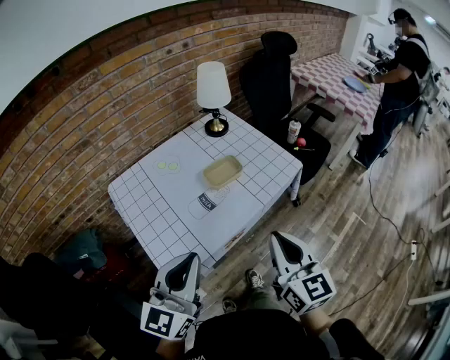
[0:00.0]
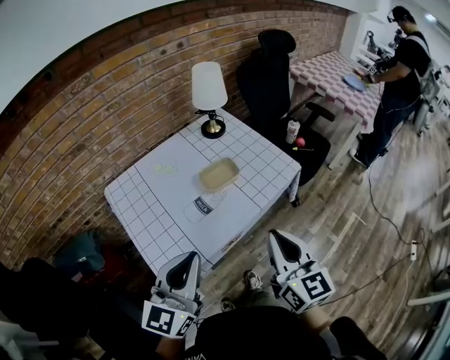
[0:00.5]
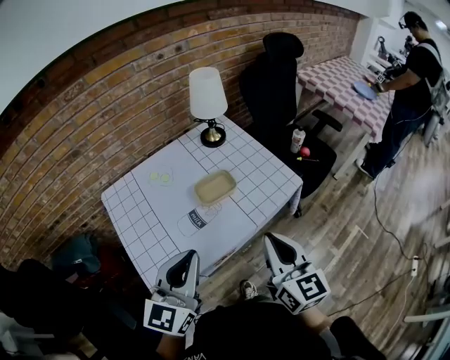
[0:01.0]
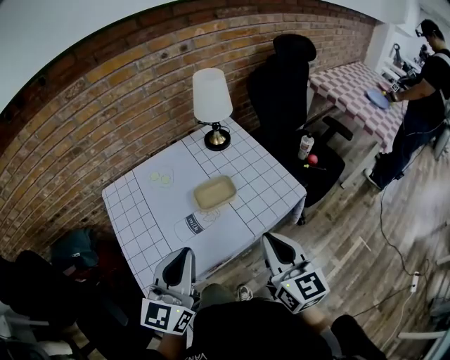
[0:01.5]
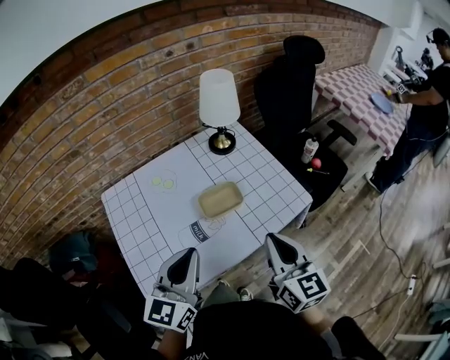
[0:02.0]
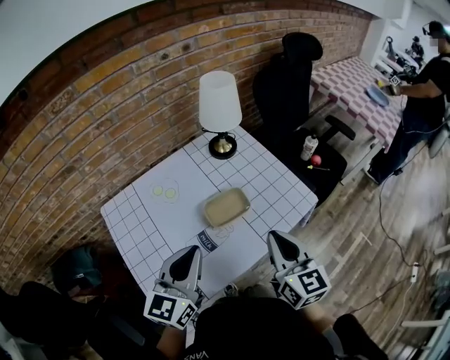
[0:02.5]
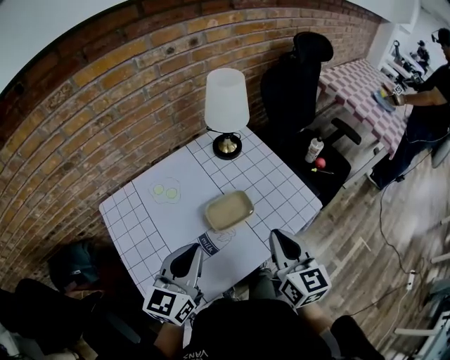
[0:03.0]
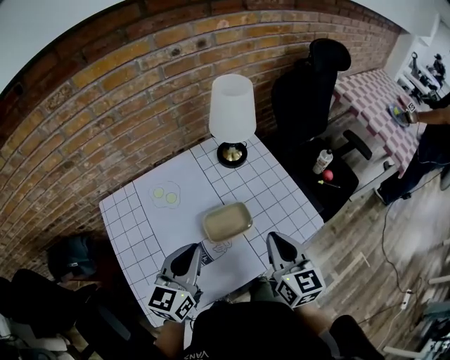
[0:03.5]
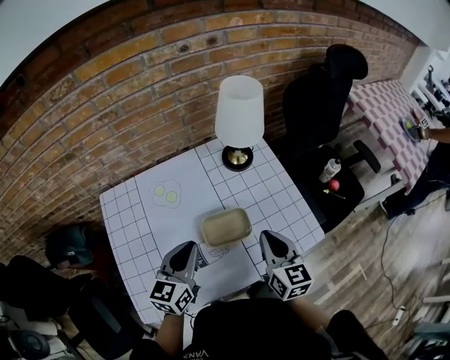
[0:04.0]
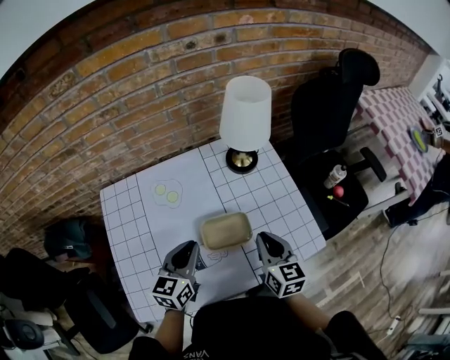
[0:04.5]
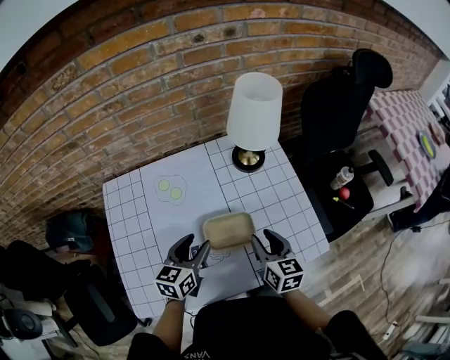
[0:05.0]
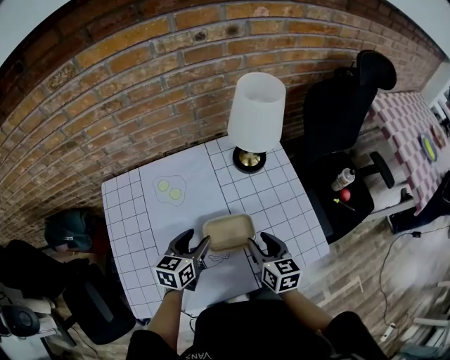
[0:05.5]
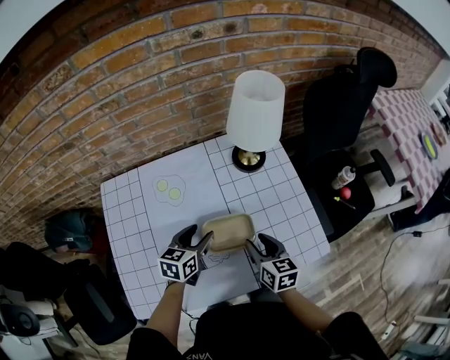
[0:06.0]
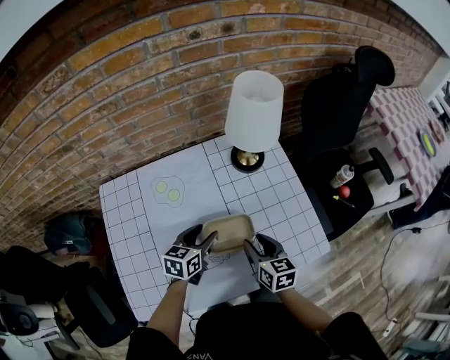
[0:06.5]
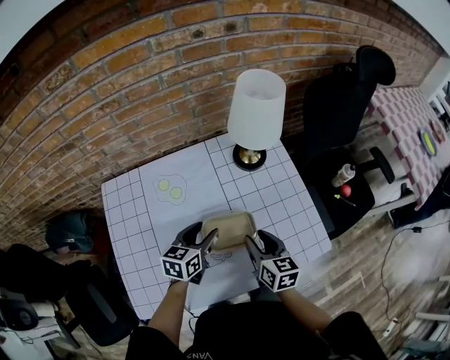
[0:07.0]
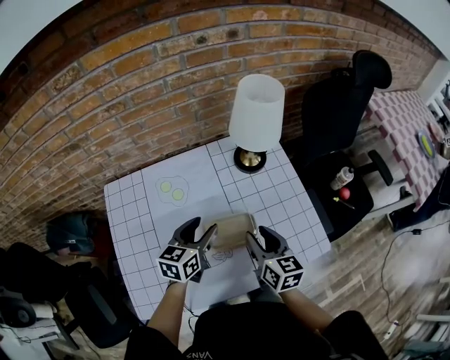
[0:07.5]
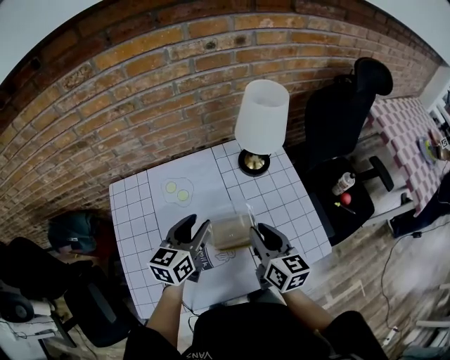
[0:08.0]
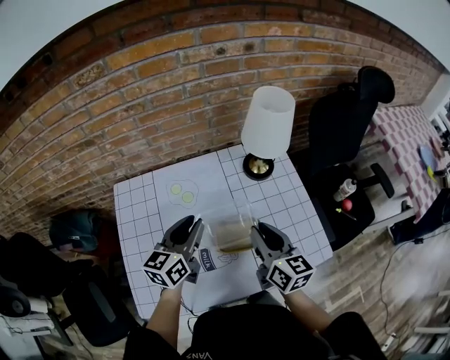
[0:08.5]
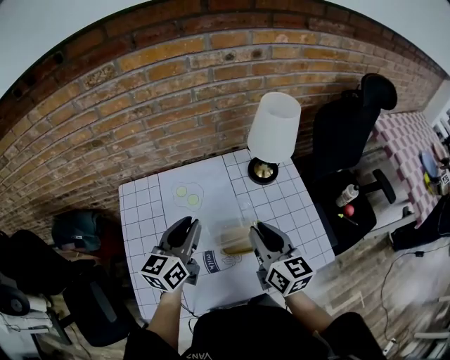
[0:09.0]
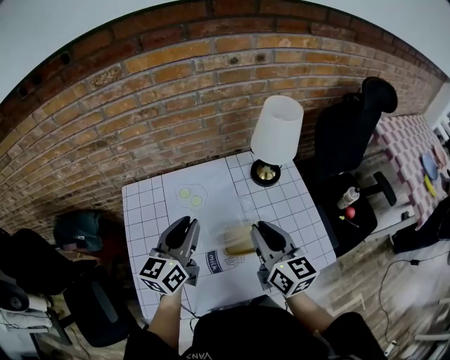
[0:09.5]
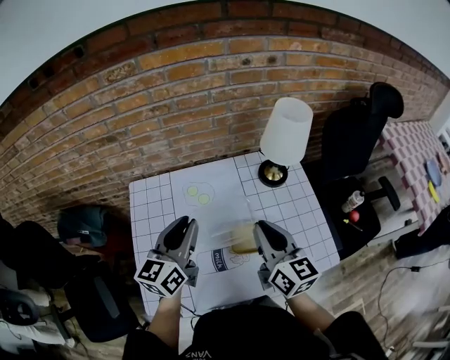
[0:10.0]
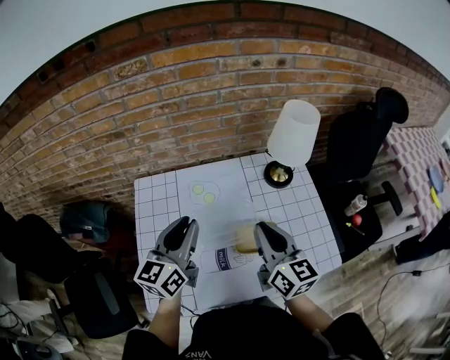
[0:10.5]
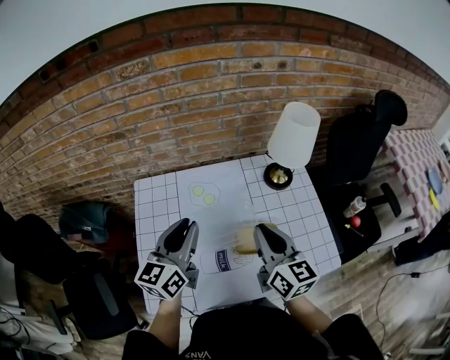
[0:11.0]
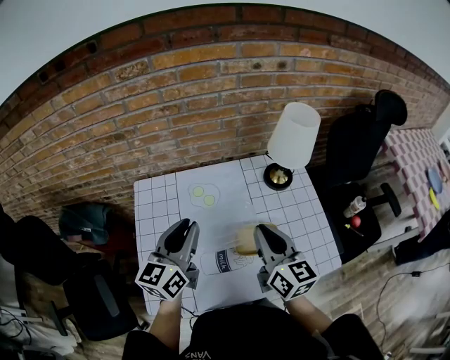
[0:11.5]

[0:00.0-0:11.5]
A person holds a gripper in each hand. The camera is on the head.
0:00.0 to 0:02.0: Both grippers travel together forward, approximately 15 cm.
0:02.0 to 0:04.0: Both grippers move forward and downward, some 20 cm.
0:04.0 to 0:06.0: The left gripper heads downward and forward, covering roughly 15 cm, and opens its fingers. The right gripper is displaced downward by about 10 cm, changes its angle by roughly 20 degrees, and opens its fingers.
0:06.0 to 0:07.5: Both grippers travel together upward, roughly 5 cm.
0:07.5 to 0:09.5: The two grippers go about 15 cm upward and to the left. The left gripper swivels roughly 20 degrees, and closes its fingers; the right gripper closes.
0:09.5 to 0:11.5: The left gripper shifts by approximately 5 cm.

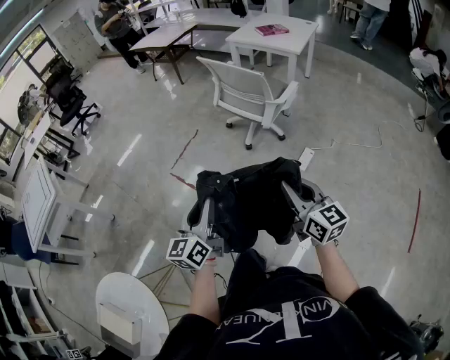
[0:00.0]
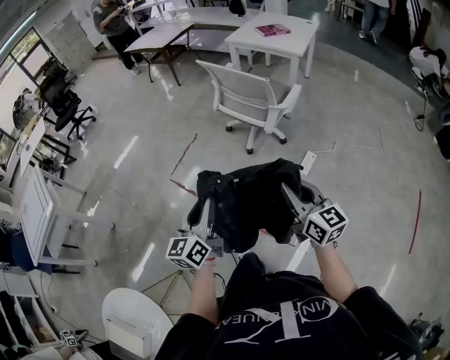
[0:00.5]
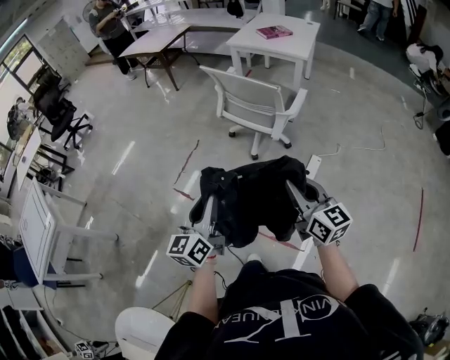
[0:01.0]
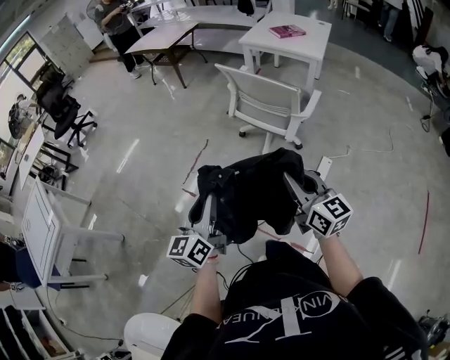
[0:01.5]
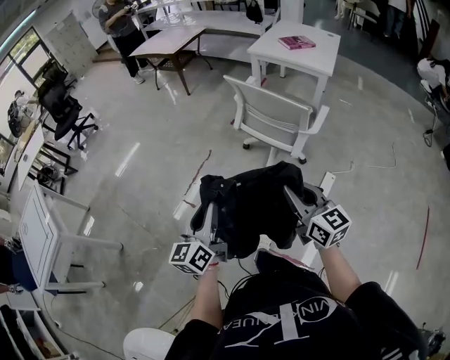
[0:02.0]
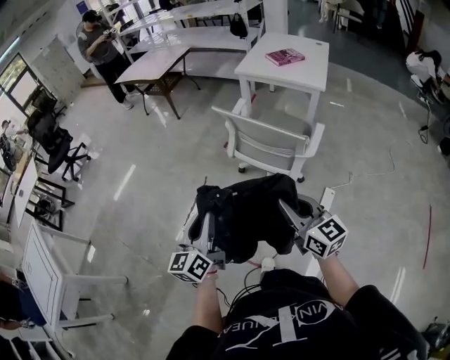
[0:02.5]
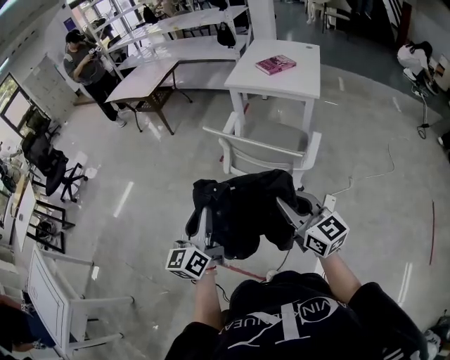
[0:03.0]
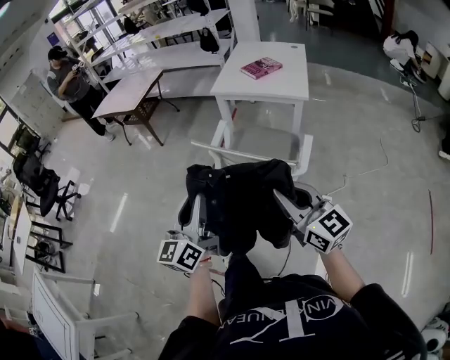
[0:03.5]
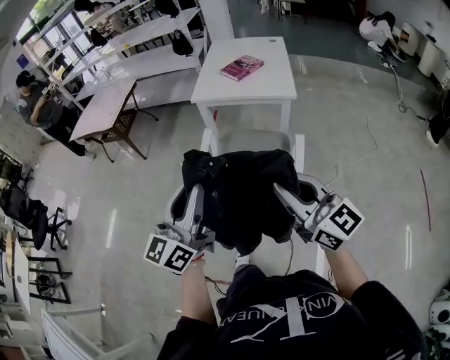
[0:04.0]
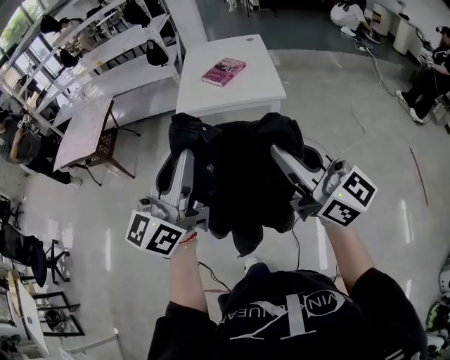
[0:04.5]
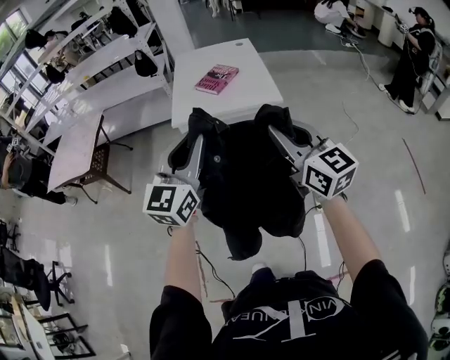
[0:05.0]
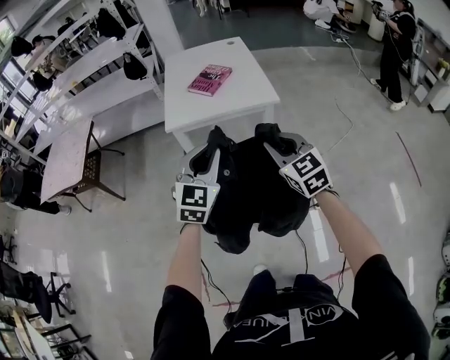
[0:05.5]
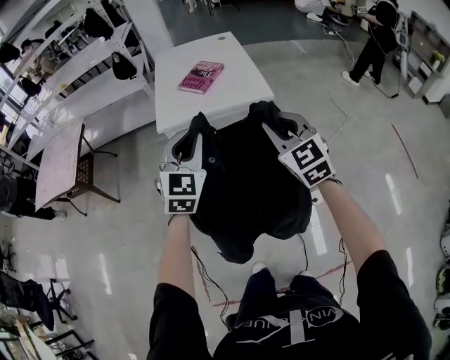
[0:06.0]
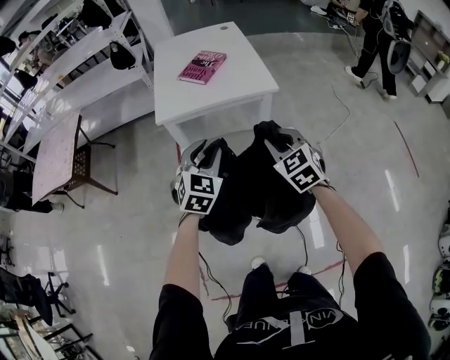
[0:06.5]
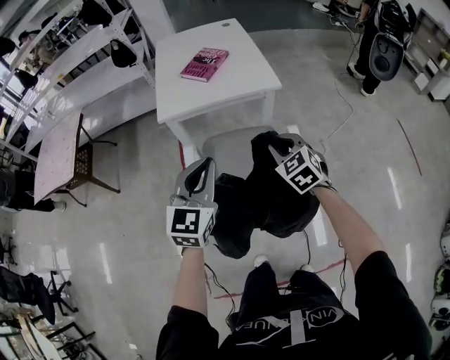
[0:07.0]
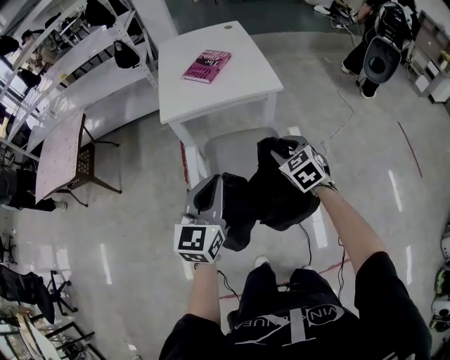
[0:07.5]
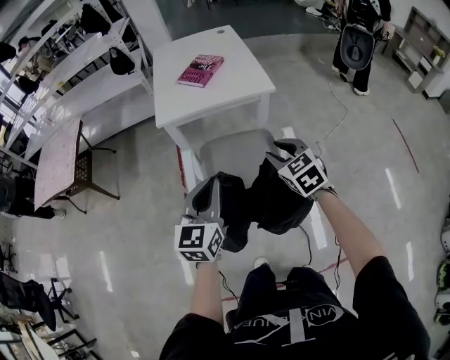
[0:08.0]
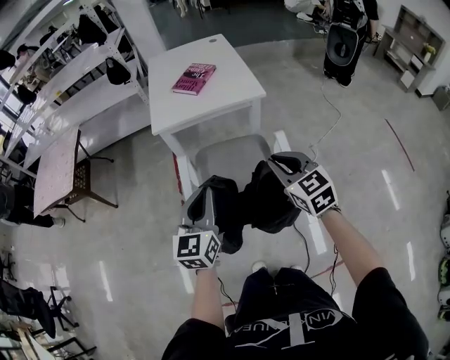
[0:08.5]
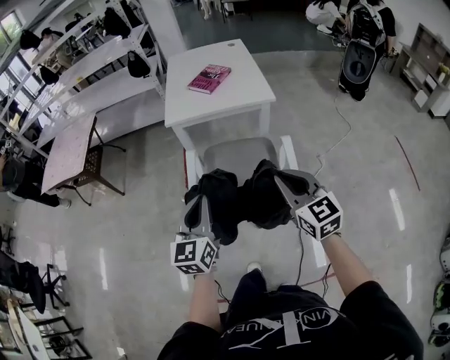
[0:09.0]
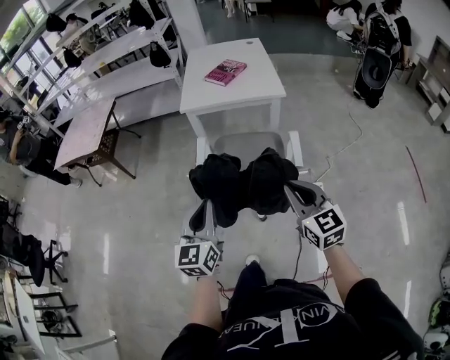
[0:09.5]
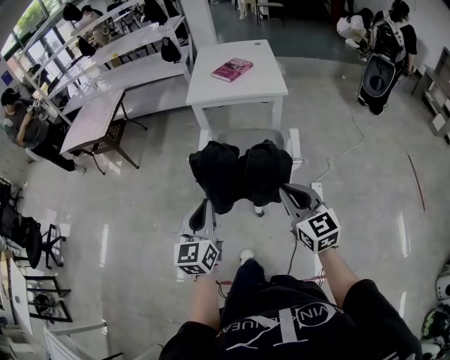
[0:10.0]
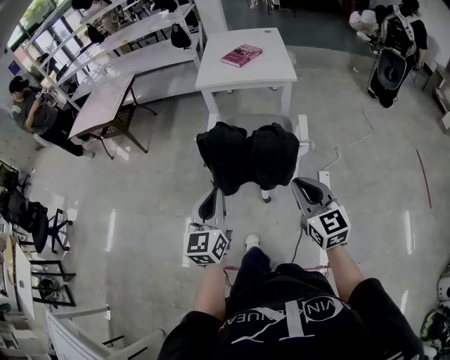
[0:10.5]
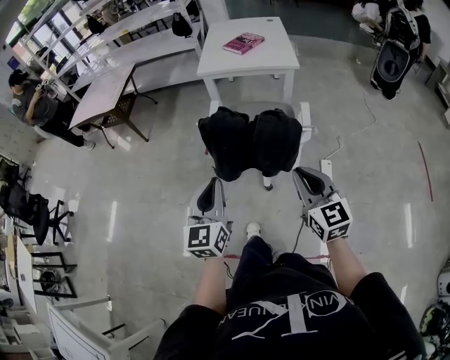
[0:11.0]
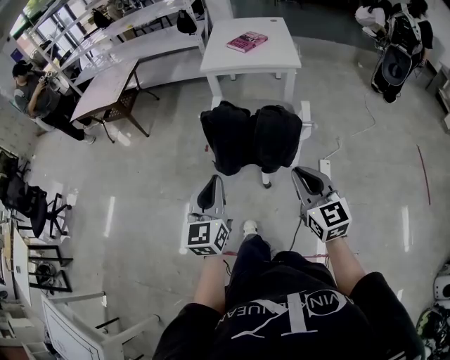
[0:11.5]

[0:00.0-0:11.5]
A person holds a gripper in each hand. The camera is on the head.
0:00.0 to 0:02.0: The grippers both shift forward and to the left by about 30 cm.
0:02.0 to 0:04.0: The left gripper travels forward by some 40 cm, and rotates roughly 30 degrees, while the right gripper travels forward and upward by roughly 35 cm.
0:04.0 to 0:06.0: Both grippers move forward, about 30 cm. The right gripper swivels roughly 50 degrees, while the left gripper rotates around the line of its fingers by roughly 40 degrees, clockwise from behind.
0:06.0 to 0:07.5: The right gripper goes roughly 15 cm downward, and turns by approximately 30 degrees. The left gripper shifts about 15 cm backward and downward, and turns by roughly 30 degrees.
0:07.5 to 0:09.5: The grippers both shift backward by approximately 25 cm. The right gripper swivels roughly 30 degrees, and closes.
0:09.5 to 0:11.5: Both grippers move backward, about 15 cm.

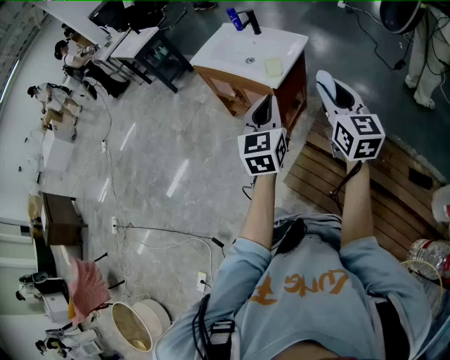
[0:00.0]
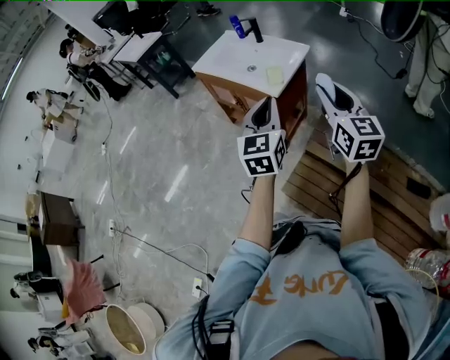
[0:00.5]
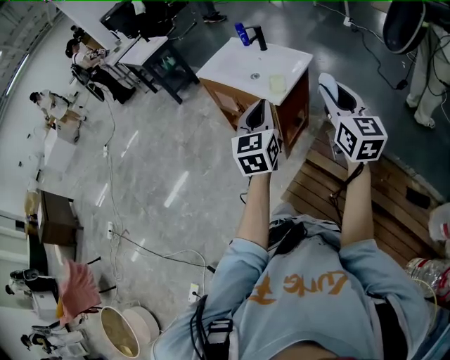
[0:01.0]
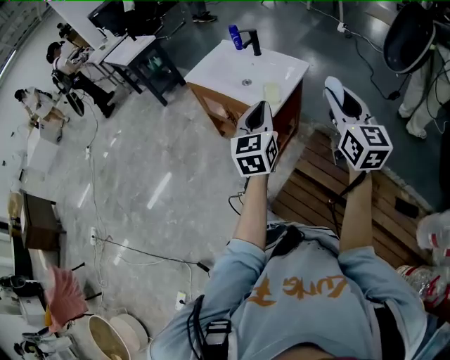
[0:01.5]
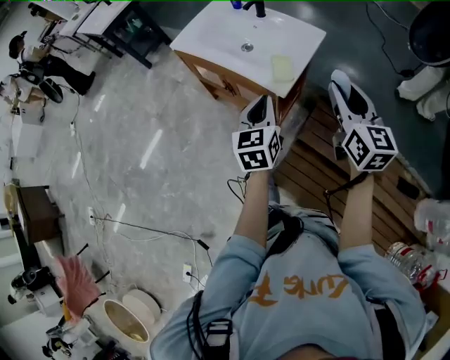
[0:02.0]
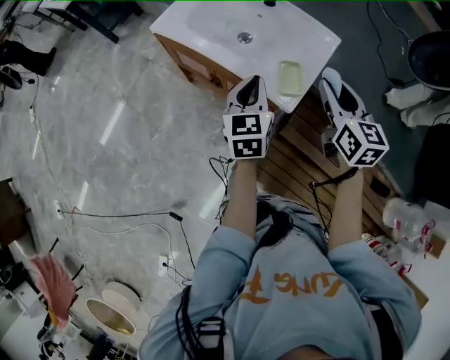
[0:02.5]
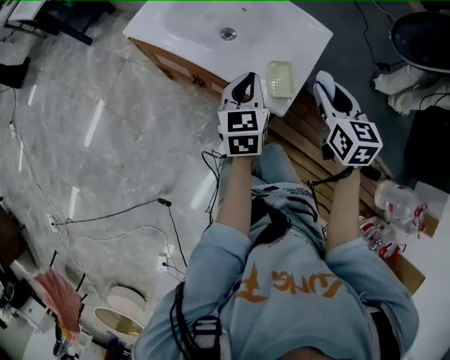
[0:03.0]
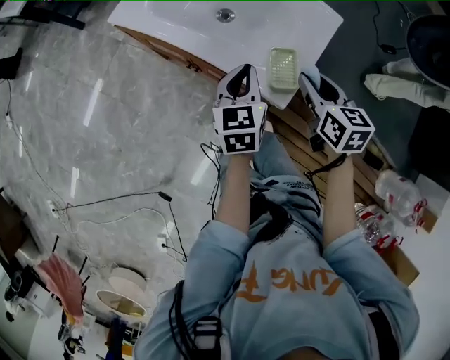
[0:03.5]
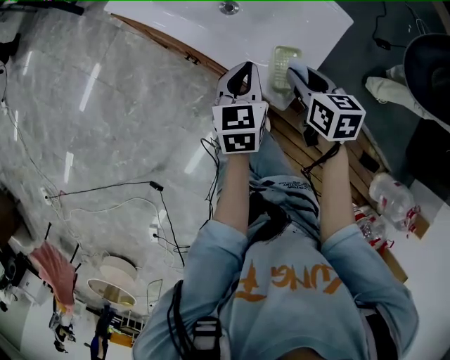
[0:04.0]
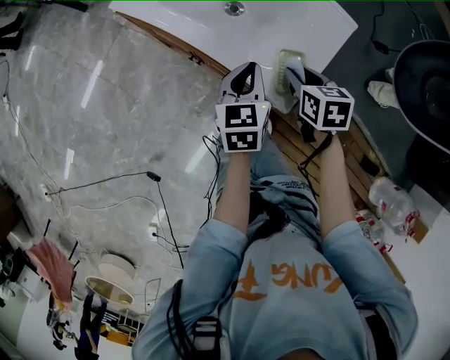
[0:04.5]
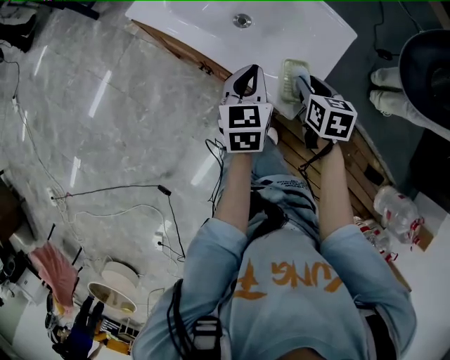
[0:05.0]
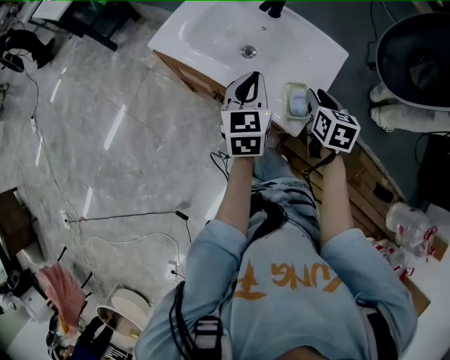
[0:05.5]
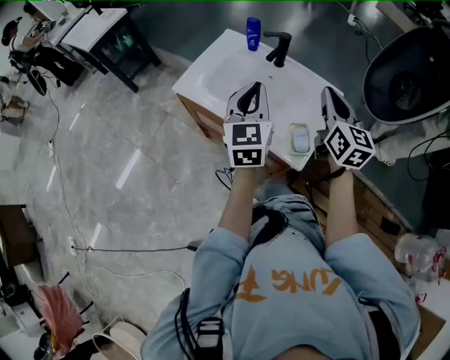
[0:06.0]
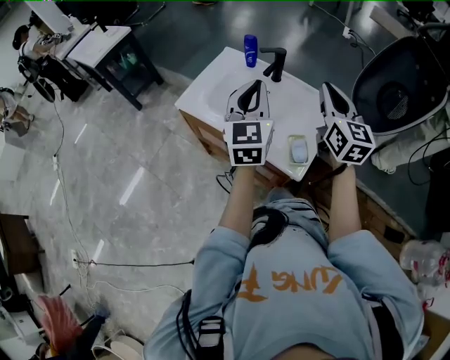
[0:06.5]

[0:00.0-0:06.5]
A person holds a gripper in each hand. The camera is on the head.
0:00.0 to 0:02.0: The left gripper travels forward and downward by some 25 cm. The right gripper goes some 20 cm forward.
0:02.0 to 0:04.5: The left gripper is displaced forward and downward by roughly 25 cm. The right gripper travels downward and forward by some 35 cm, and tilts its fingers roughly 50 degrees downward.
0:04.5 to 0:06.5: The two grippers go approximately 30 cm upward. The right gripper points its fingers roughly 50 degrees further upward, and closes. Meanwhile the left gripper rotates about 40 degrees.
